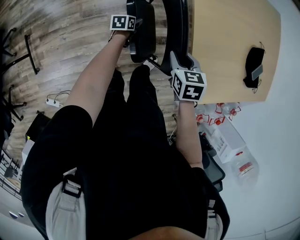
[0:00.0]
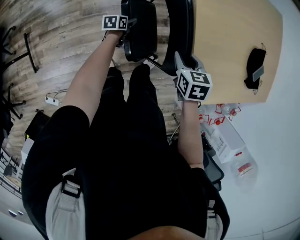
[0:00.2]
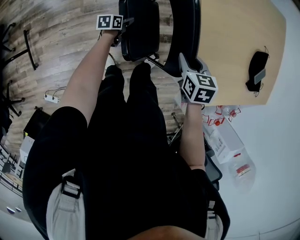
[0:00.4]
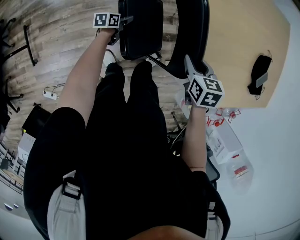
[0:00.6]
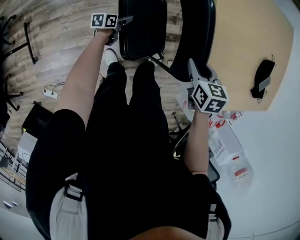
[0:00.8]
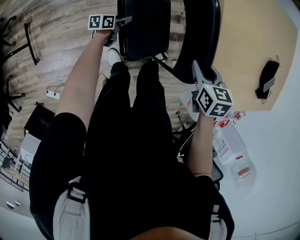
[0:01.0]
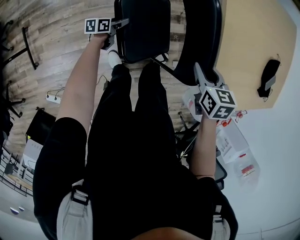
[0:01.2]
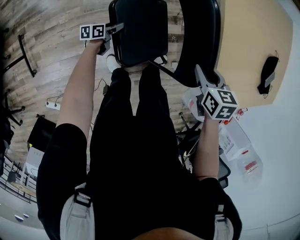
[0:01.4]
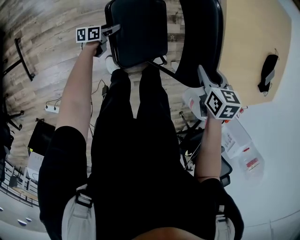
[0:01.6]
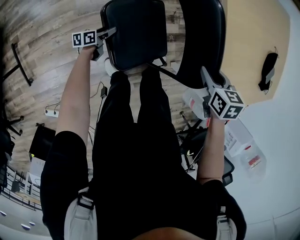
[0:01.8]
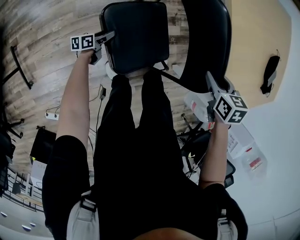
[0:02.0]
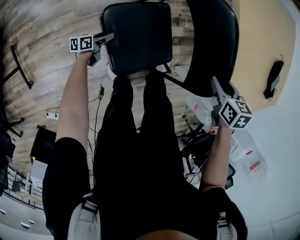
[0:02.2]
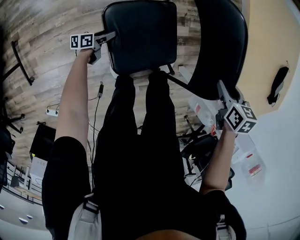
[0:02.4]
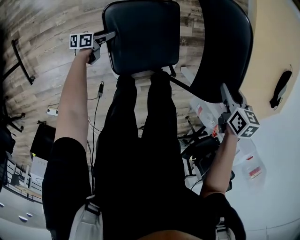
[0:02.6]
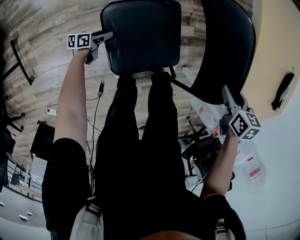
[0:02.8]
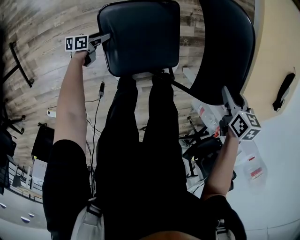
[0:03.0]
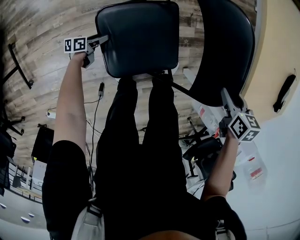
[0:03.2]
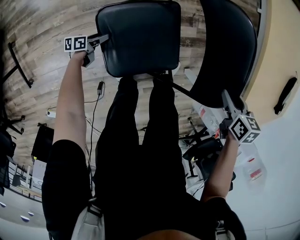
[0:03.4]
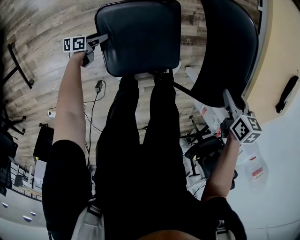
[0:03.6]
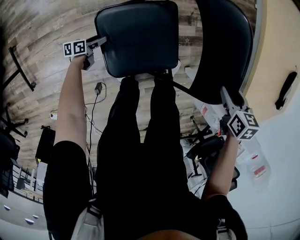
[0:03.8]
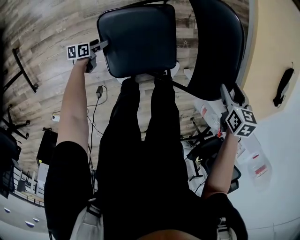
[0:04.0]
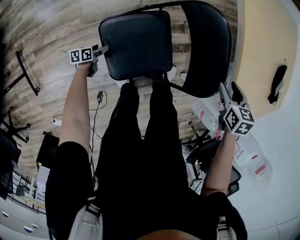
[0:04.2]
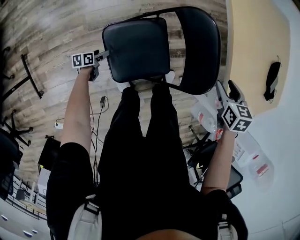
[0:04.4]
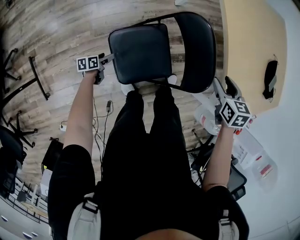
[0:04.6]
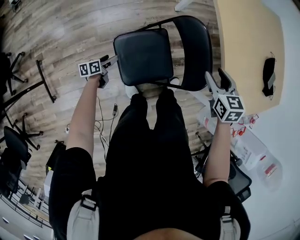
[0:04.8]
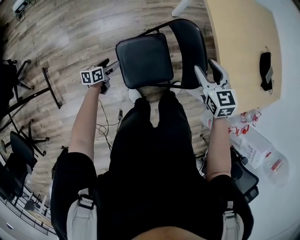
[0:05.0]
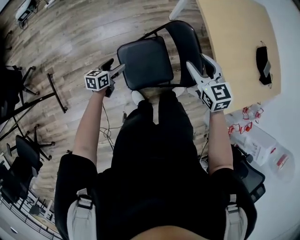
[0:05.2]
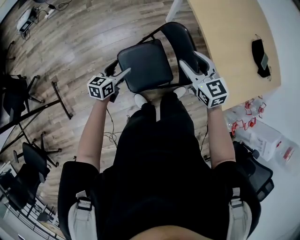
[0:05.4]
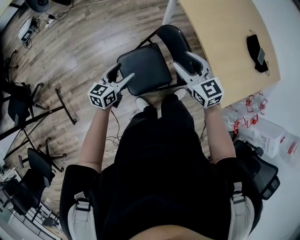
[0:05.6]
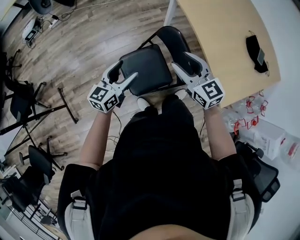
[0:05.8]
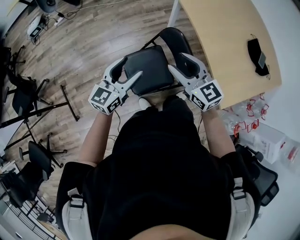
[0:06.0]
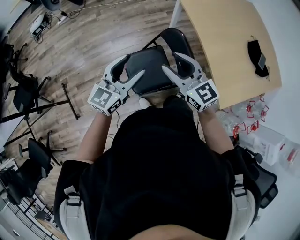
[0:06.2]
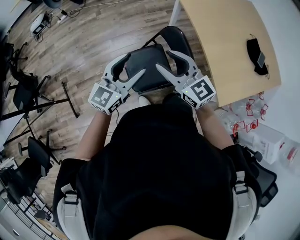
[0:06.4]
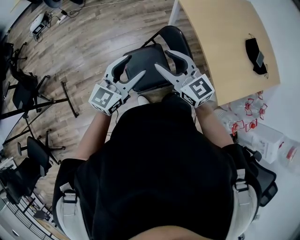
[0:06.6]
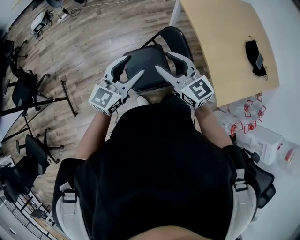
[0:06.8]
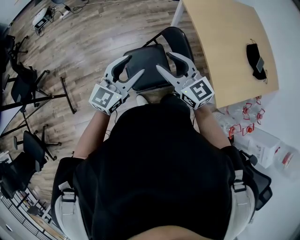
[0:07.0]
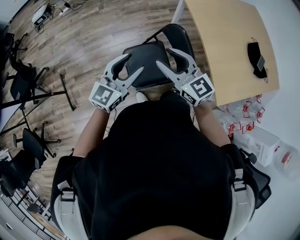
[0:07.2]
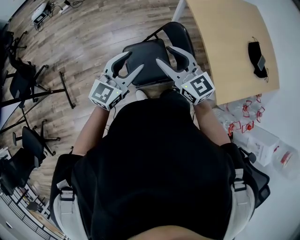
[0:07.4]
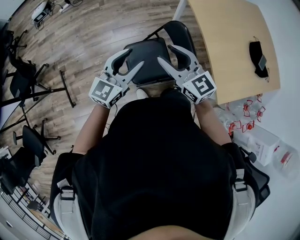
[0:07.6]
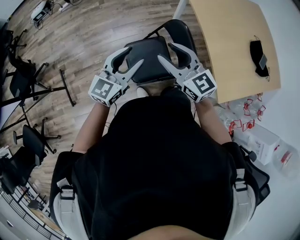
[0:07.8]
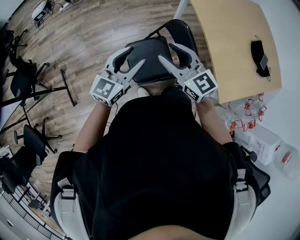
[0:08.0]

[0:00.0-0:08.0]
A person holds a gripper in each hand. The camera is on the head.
0:00.0 to 0:01.6: The left gripper moves to the left, downward and backward, about 25 cm, and swivels some 20 degrees. Meanwhile the right gripper goes about 10 cm downward.
0:01.6 to 0:03.2: The right gripper goes approximately 10 cm downward, while the left gripper travels downward and to the left by roughly 20 cm.
0:03.2 to 0:04.8: The left gripper shifts some 25 cm upward. The right gripper goes roughly 20 cm upward and to the left, and changes its angle by roughly 30 degrees.
0:04.8 to 0:06.4: The left gripper is displaced upward by some 60 cm, and rolls clockwise, seen from behind, by roughly 60 degrees; the right gripper heads upward, backward and to the left, covering some 30 cm, and tips its fingers upward by approximately 40 degrees.
0:06.4 to 0:08.0: There are only small adjustments of the grippers.

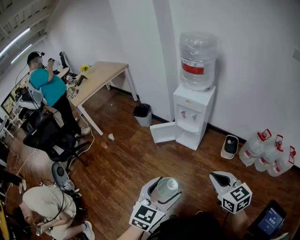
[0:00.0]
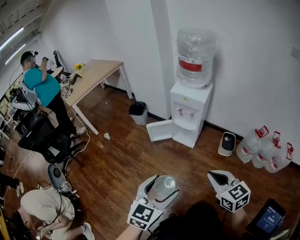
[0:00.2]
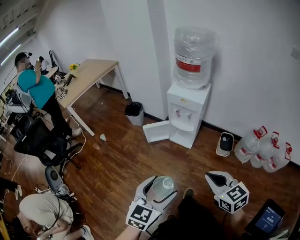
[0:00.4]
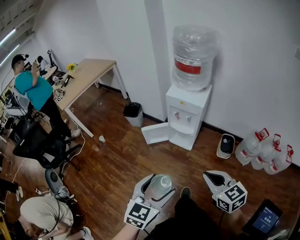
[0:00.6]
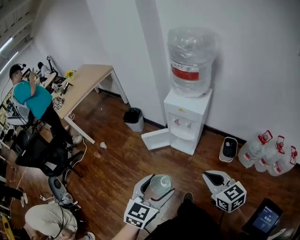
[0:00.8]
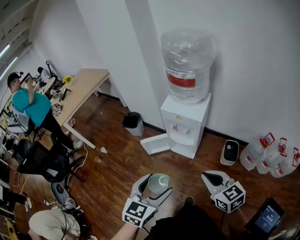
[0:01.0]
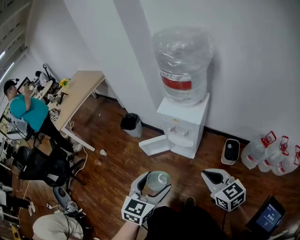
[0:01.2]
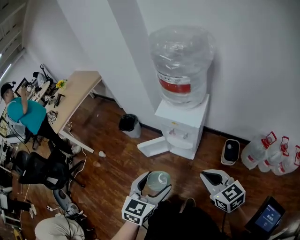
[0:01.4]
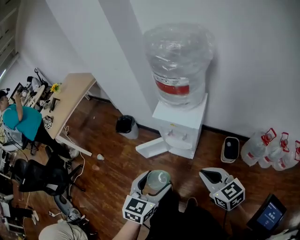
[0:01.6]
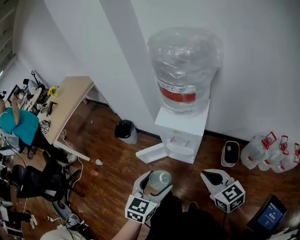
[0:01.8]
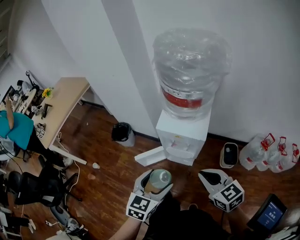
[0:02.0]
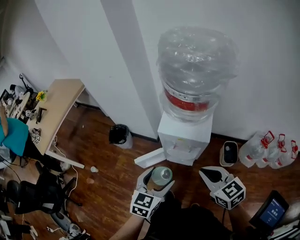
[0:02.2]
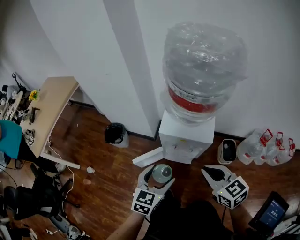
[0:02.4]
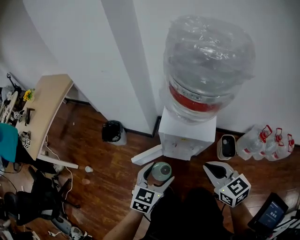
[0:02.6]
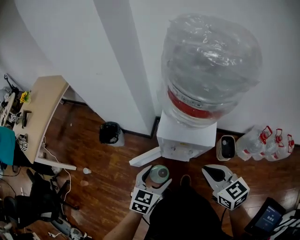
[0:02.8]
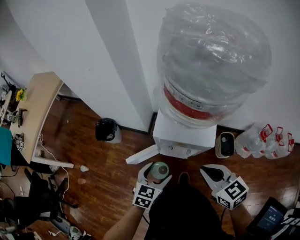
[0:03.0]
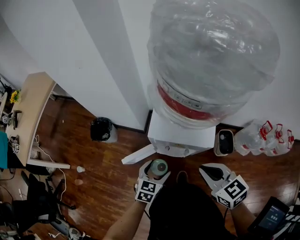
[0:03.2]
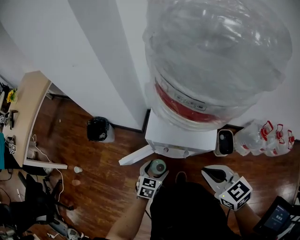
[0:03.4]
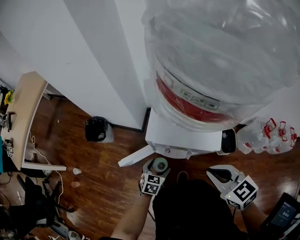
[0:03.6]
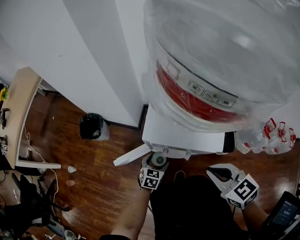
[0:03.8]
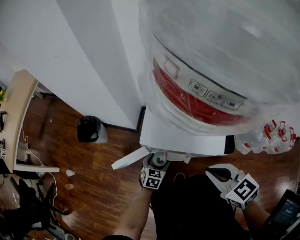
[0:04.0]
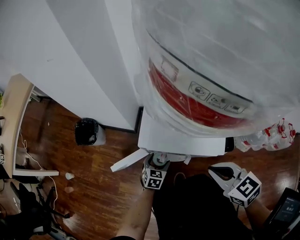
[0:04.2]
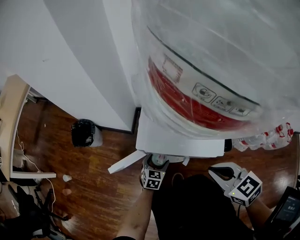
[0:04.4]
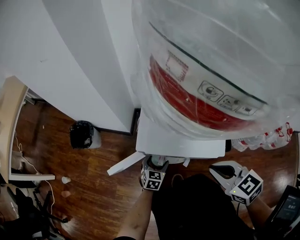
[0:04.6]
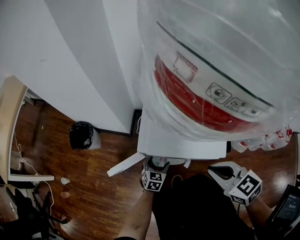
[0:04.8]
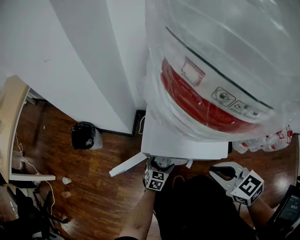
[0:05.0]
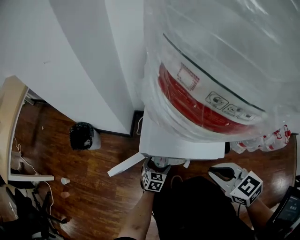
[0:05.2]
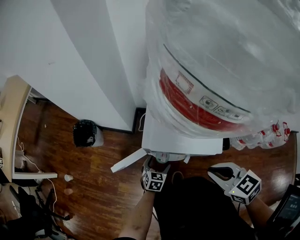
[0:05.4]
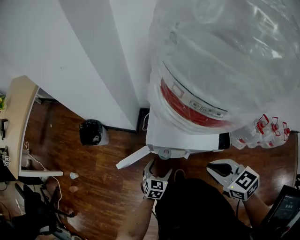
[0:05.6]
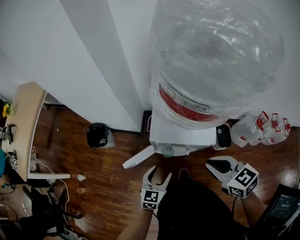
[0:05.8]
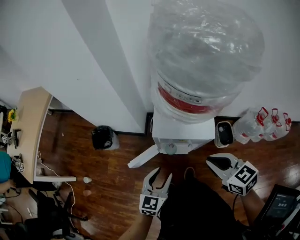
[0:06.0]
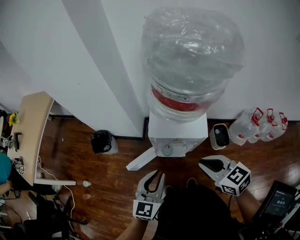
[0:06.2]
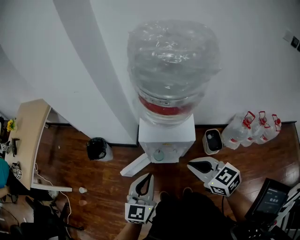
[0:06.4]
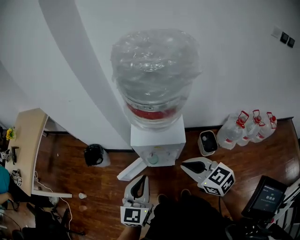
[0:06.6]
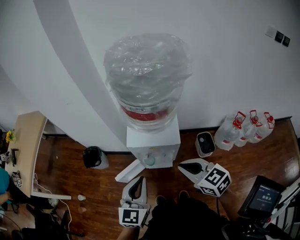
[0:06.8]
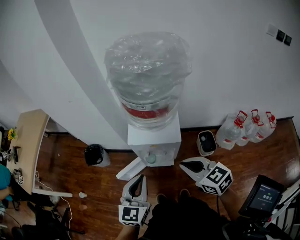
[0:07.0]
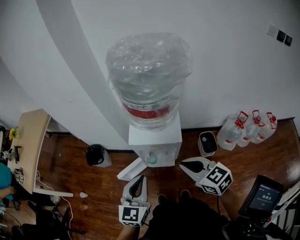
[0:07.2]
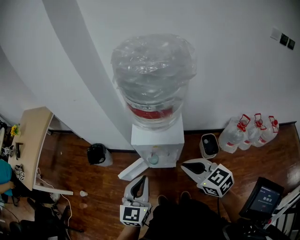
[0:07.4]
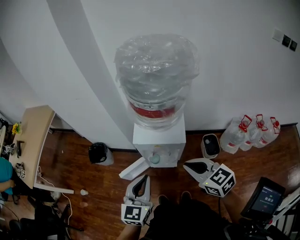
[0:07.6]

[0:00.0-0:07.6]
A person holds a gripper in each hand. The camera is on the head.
0:00.0 to 0:01.6: Both grippers travel together forward, approximately 35 cm.
0:01.6 to 0:03.0: The right gripper shifts roughly 20 cm forward and to the left. The left gripper moves forward and downward, about 30 cm.
0:03.0 to 0:04.6: The left gripper shifts approximately 35 cm downward and forward. Meanwhile the right gripper moves downward and forward, roughly 15 cm.
0:04.6 to 0:06.0: The left gripper goes about 35 cm upward and backward, changes its angle by approximately 20 degrees, and closes its fingers. Meanwhile the right gripper travels upward and backward by roughly 15 cm.
0:06.0 to 0:07.6: The right gripper heads backward and upward, covering approximately 10 cm. Meanwhile the left gripper travels upward and backward by some 20 cm, and closes up.

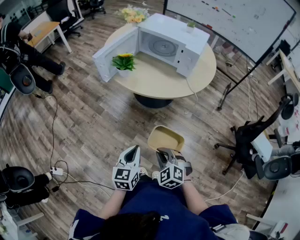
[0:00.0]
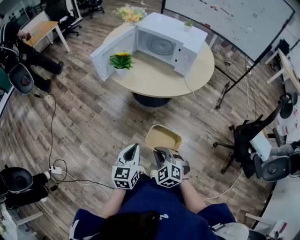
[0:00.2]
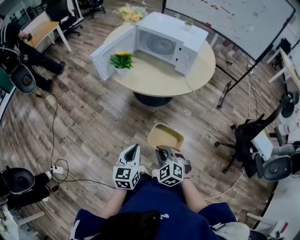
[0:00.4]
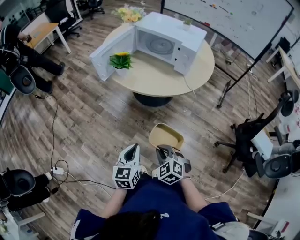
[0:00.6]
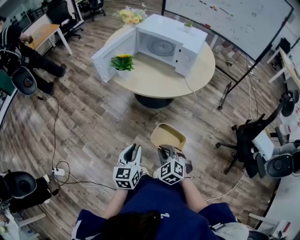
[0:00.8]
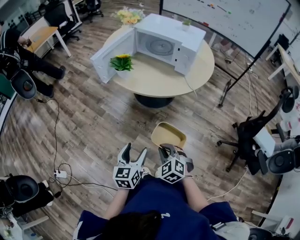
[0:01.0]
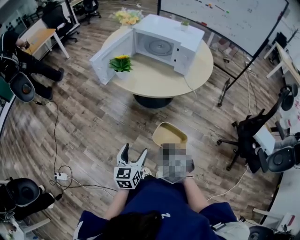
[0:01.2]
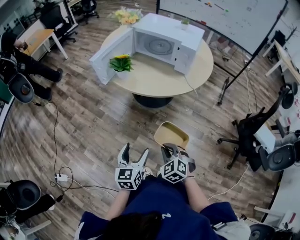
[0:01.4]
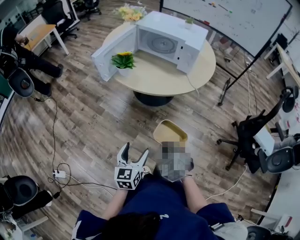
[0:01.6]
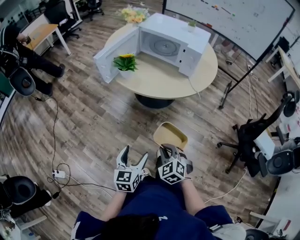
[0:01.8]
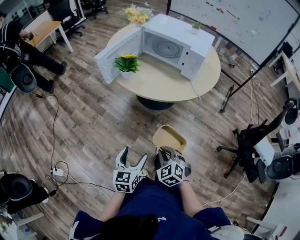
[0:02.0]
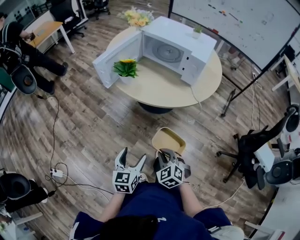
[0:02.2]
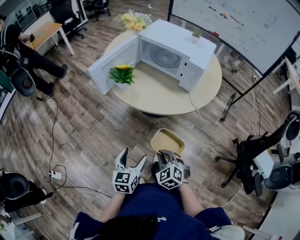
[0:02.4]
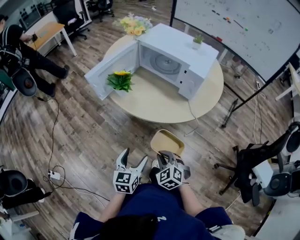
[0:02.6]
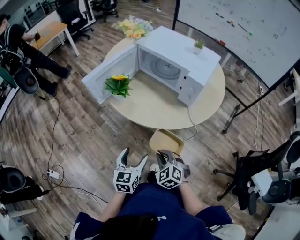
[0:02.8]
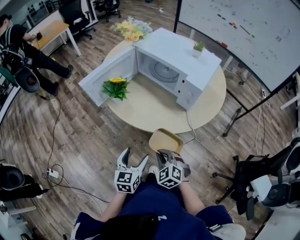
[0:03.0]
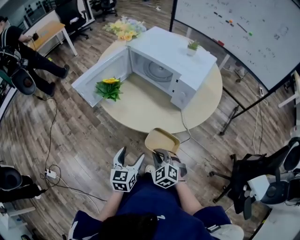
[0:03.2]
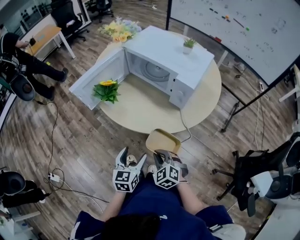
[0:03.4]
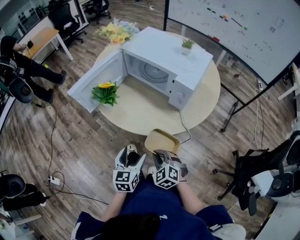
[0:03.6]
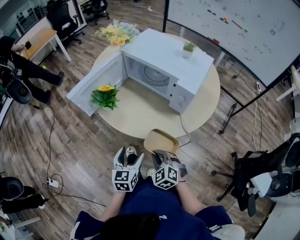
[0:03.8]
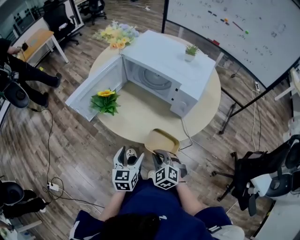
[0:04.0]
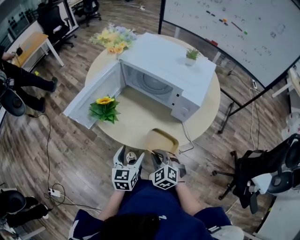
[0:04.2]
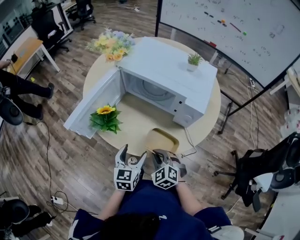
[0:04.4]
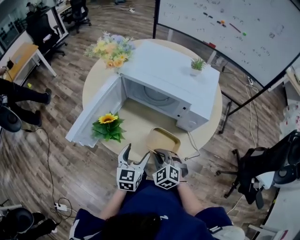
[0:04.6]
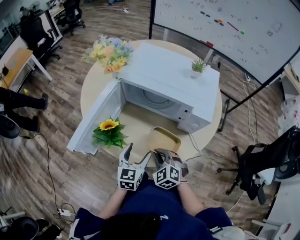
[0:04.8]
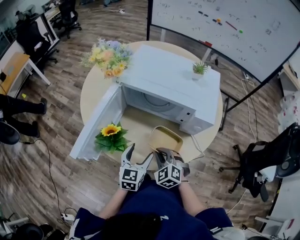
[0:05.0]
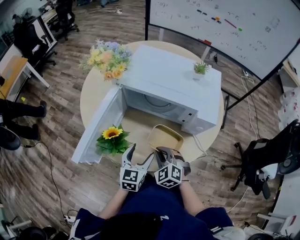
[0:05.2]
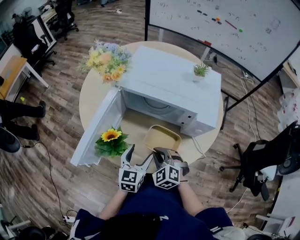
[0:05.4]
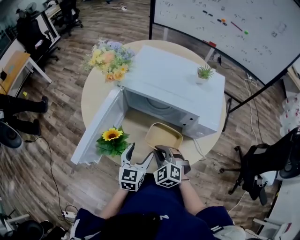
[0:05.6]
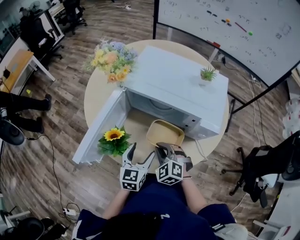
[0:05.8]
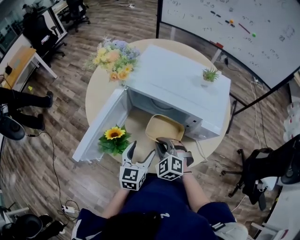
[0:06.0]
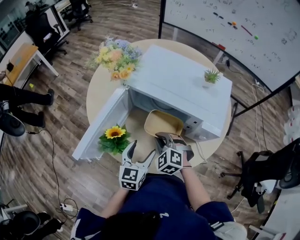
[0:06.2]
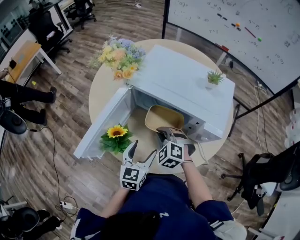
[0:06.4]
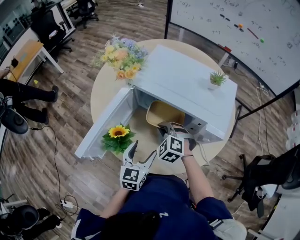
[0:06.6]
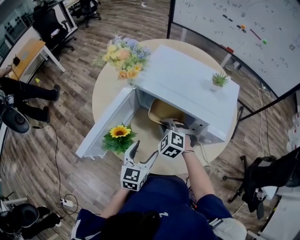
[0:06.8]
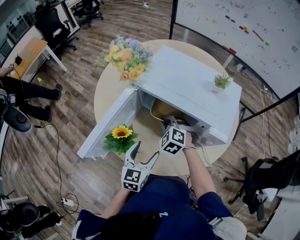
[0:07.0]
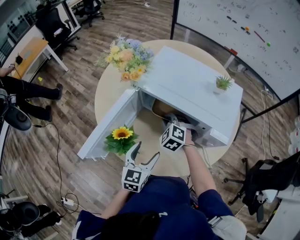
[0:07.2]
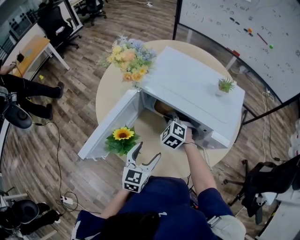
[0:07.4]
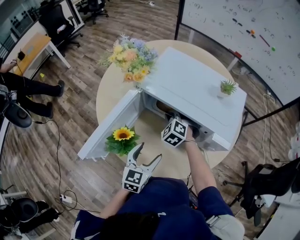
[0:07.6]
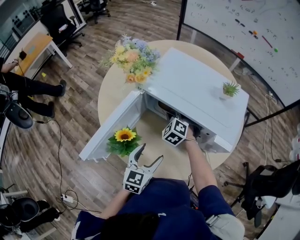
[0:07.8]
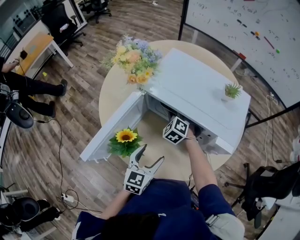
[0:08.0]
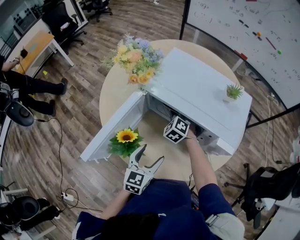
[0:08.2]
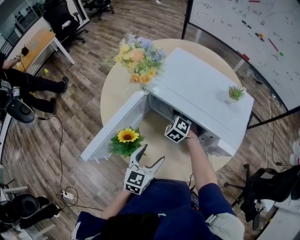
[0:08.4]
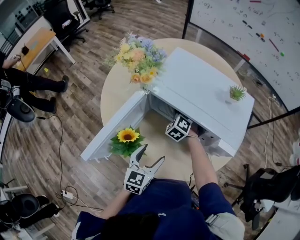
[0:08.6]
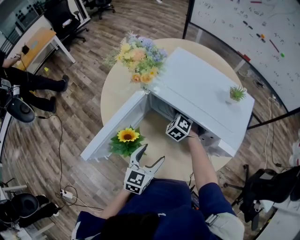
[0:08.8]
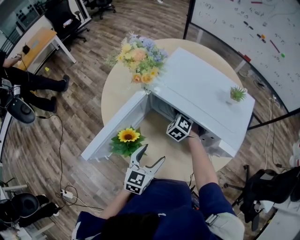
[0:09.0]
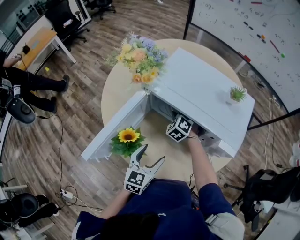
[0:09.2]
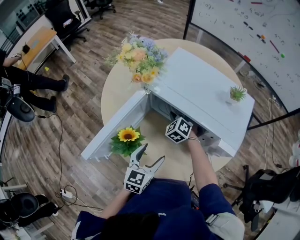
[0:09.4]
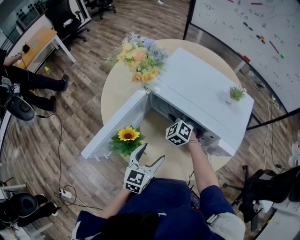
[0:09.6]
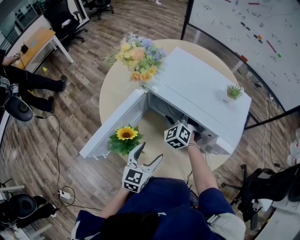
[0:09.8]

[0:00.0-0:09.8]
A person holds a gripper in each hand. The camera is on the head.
0:00.0 to 0:01.4: The left gripper opens.
0:01.4 to 0:02.8: The left gripper goes roughly 20 cm forward and to the right. The right gripper heads forward, covering some 15 cm.
0:02.8 to 0:04.2: The grippers both shift forward by roughly 15 cm.
0:04.2 to 0:05.6: The left gripper shifts approximately 15 cm forward. Meanwhile the right gripper travels forward and to the left by roughly 15 cm.
0:05.6 to 0:07.0: The right gripper is displaced forward by some 15 cm.
0:07.0 to 0:08.4: The right gripper heads forward, covering approximately 10 cm.
0:08.4 to 0:09.8: The right gripper ends up about 5 cm from where it was, and opens its fingers.
